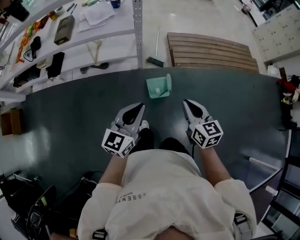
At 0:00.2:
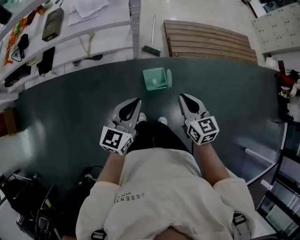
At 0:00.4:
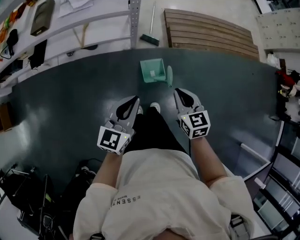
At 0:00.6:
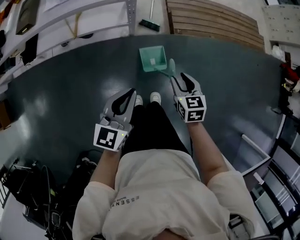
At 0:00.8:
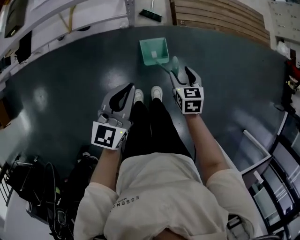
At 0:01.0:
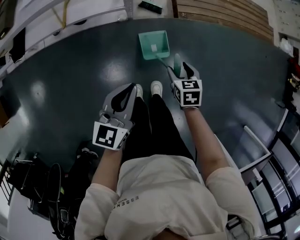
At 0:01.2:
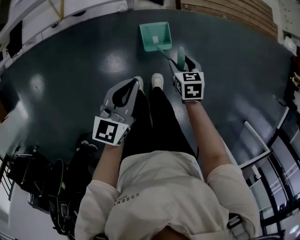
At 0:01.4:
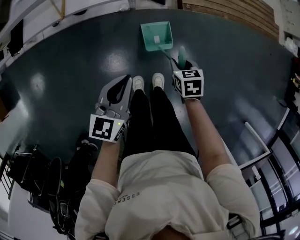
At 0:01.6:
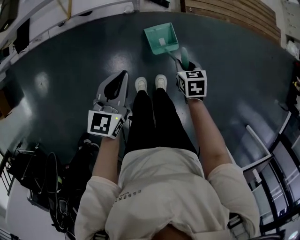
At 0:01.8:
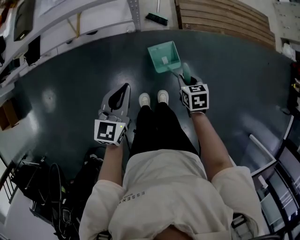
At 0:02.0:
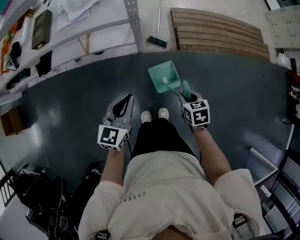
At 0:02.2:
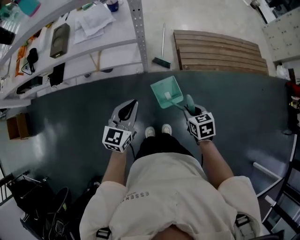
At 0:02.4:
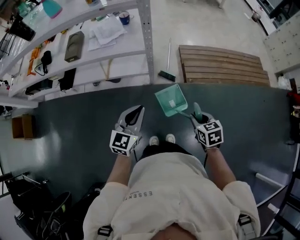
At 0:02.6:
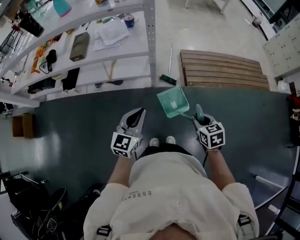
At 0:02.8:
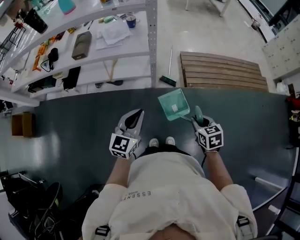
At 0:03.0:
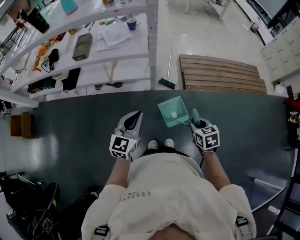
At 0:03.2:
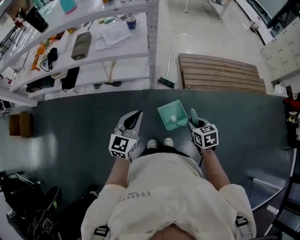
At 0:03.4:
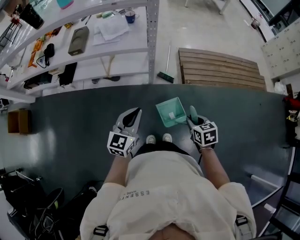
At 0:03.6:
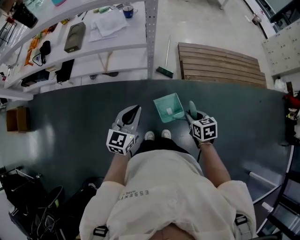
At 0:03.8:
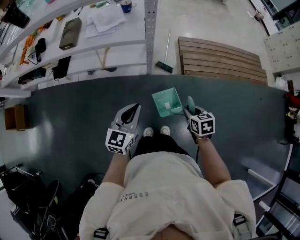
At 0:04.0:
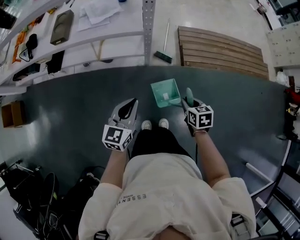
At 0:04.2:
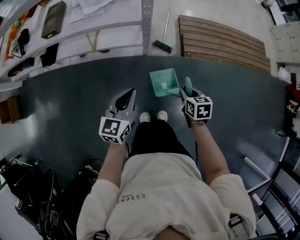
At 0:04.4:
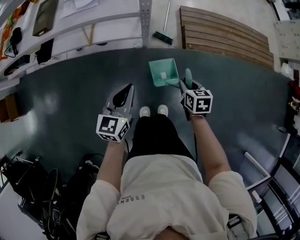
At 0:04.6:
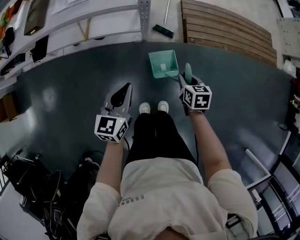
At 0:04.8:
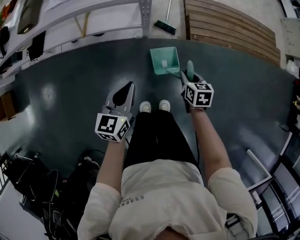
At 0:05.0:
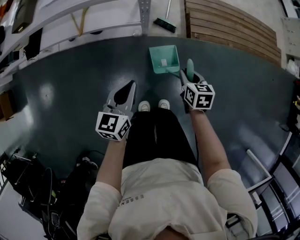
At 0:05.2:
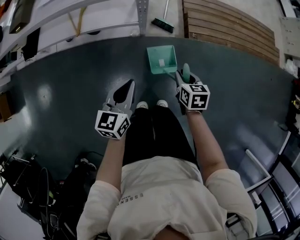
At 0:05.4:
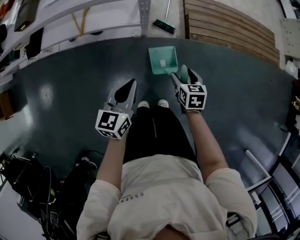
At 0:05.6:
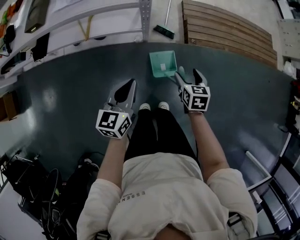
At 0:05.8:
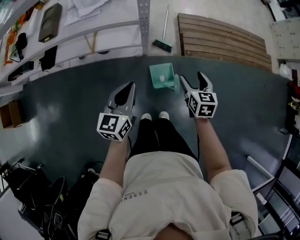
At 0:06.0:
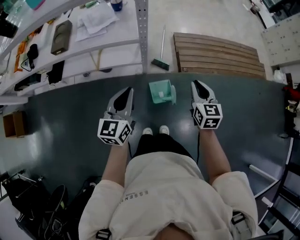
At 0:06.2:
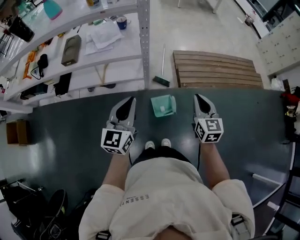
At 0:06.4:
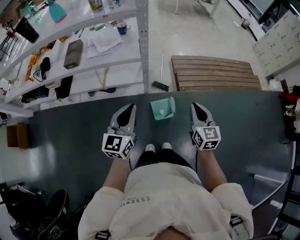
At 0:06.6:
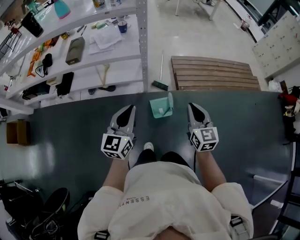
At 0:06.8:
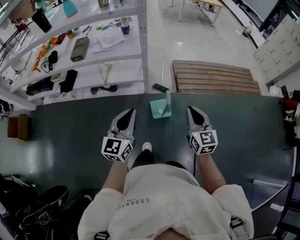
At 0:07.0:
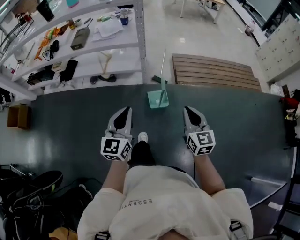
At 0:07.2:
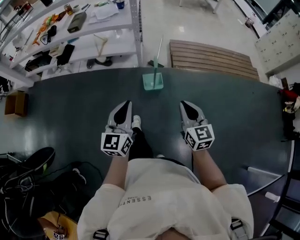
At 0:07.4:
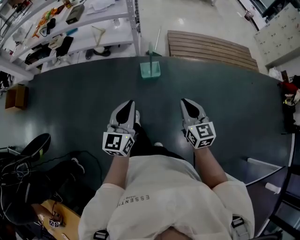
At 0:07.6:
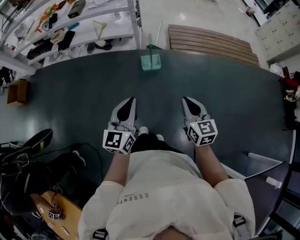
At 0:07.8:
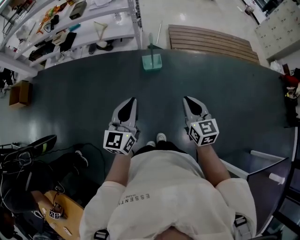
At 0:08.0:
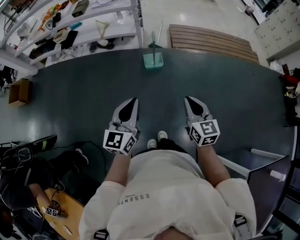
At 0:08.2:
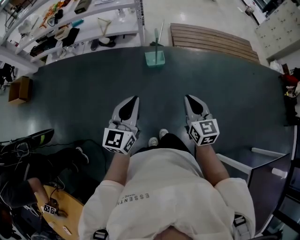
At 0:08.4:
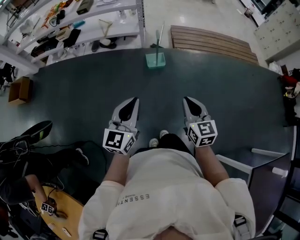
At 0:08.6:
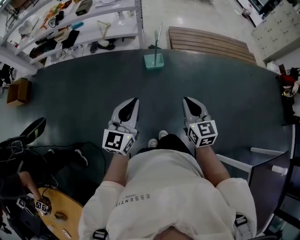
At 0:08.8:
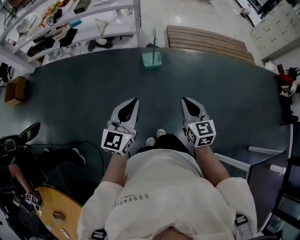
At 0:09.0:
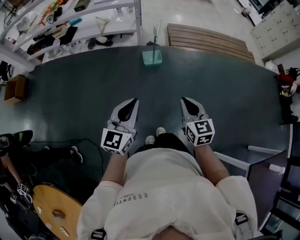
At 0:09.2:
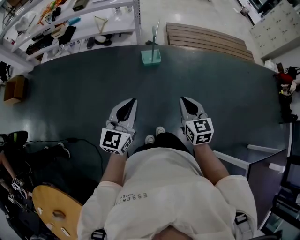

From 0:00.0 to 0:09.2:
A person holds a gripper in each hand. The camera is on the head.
From 0:00.0 to 0:01.6: The two grippers go approximately 30 cm downward and forward. The left gripper swivels roughly 20 degrees. Meanwhile the right gripper tips its fingers downward by approximately 40 degrees, and opens and closes again.
From 0:01.6 to 0:03.0: The two grippers go about 25 cm upward and backward. The left gripper swivels some 20 degrees.
From 0:03.0 to 0:04.6: Both grippers move downward and forward, about 25 cm. The left gripper swivels roughly 20 degrees.
From 0:04.6 to 0:06.2: Both grippers move upward, some 25 cm. The left gripper rotates some 20 degrees, while the right gripper tips its fingers upward by approximately 30 degrees, and opens, then closes once more.
From 0:06.2 to 0:07.6: Both grippers are carried backward, some 50 cm.
From 0:07.6 to 0:09.2: The left gripper goes roughly 10 cm backward, while the right gripper heads backward and to the left, covering approximately 10 cm.

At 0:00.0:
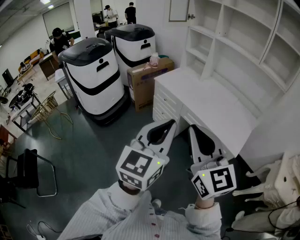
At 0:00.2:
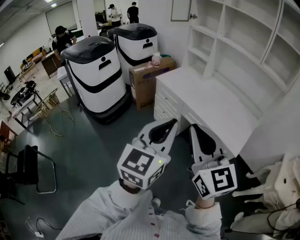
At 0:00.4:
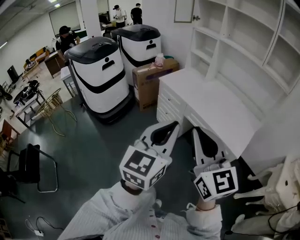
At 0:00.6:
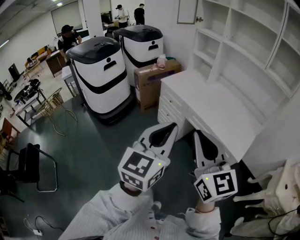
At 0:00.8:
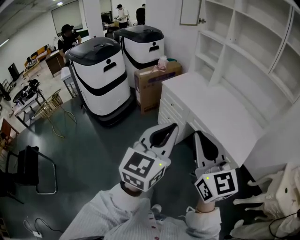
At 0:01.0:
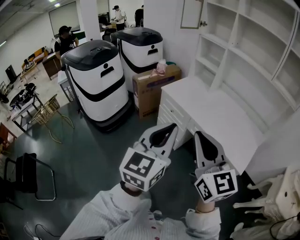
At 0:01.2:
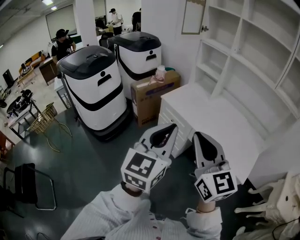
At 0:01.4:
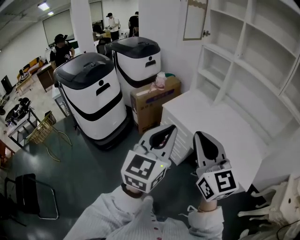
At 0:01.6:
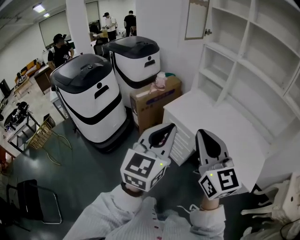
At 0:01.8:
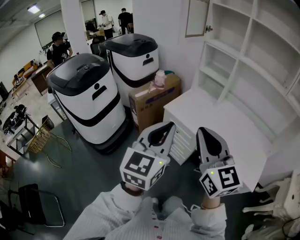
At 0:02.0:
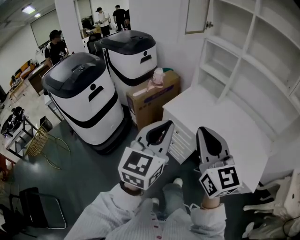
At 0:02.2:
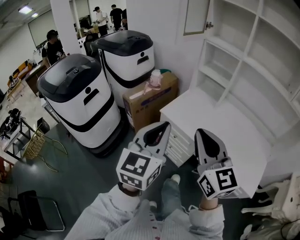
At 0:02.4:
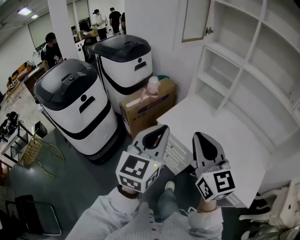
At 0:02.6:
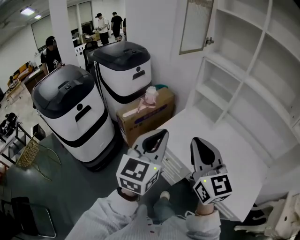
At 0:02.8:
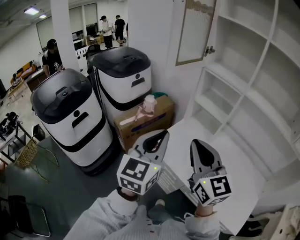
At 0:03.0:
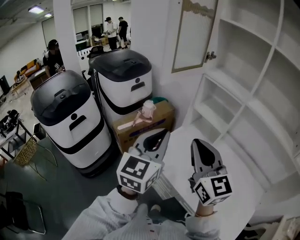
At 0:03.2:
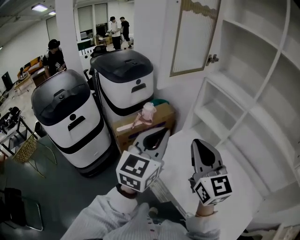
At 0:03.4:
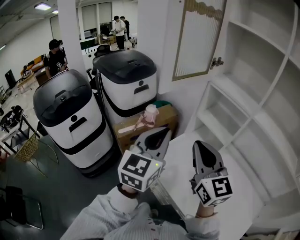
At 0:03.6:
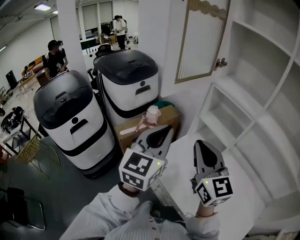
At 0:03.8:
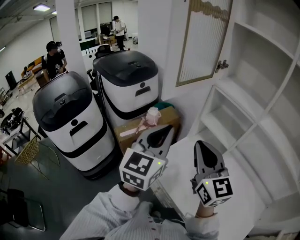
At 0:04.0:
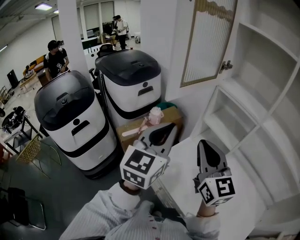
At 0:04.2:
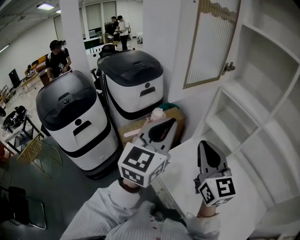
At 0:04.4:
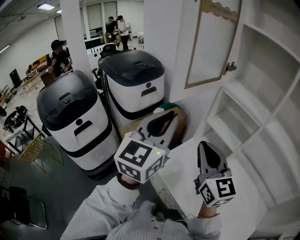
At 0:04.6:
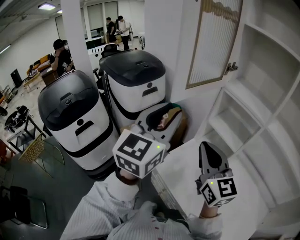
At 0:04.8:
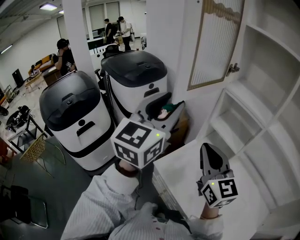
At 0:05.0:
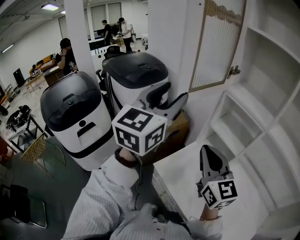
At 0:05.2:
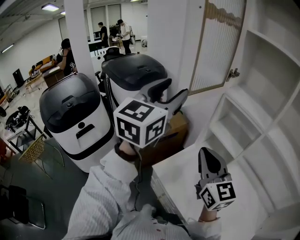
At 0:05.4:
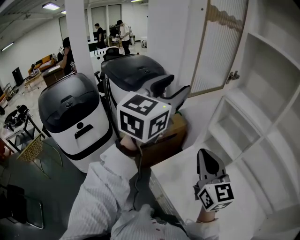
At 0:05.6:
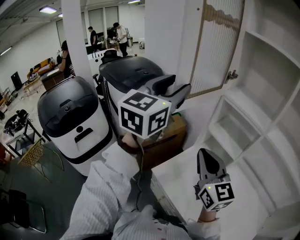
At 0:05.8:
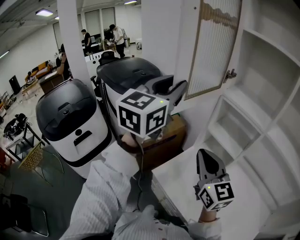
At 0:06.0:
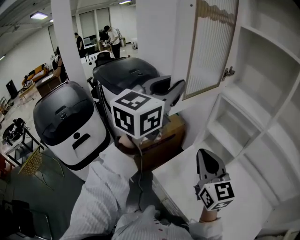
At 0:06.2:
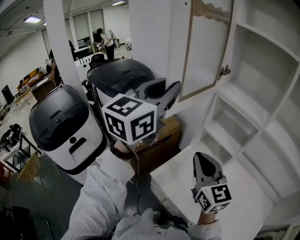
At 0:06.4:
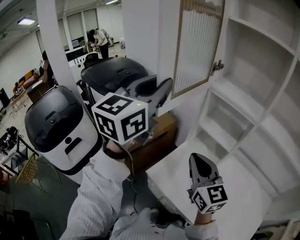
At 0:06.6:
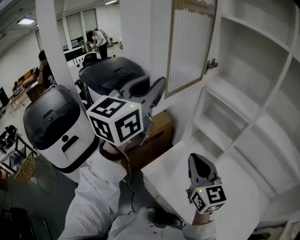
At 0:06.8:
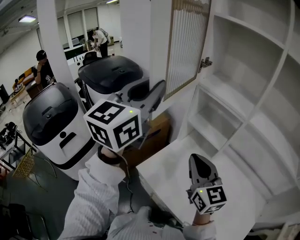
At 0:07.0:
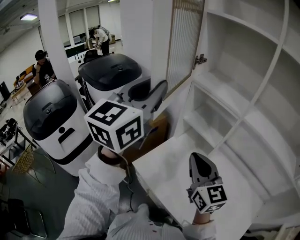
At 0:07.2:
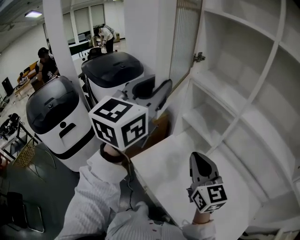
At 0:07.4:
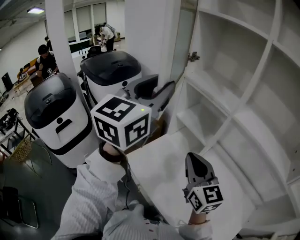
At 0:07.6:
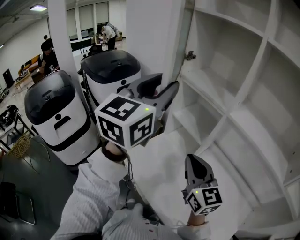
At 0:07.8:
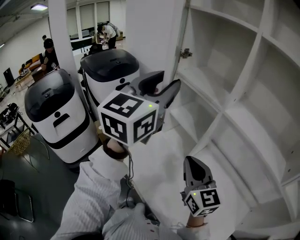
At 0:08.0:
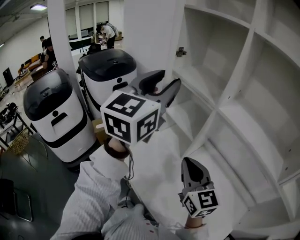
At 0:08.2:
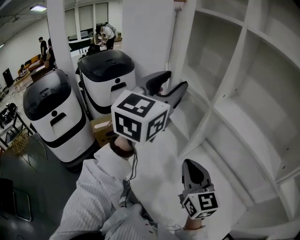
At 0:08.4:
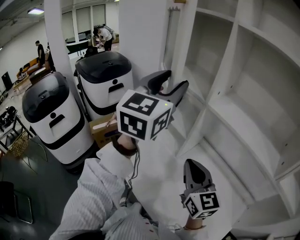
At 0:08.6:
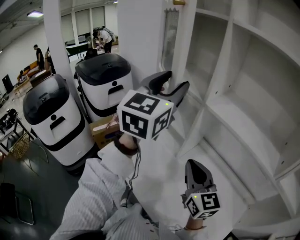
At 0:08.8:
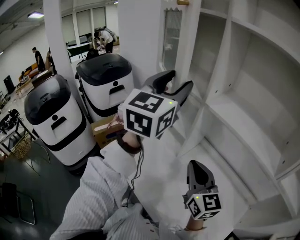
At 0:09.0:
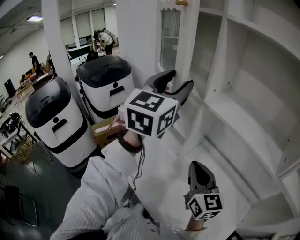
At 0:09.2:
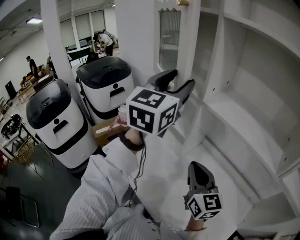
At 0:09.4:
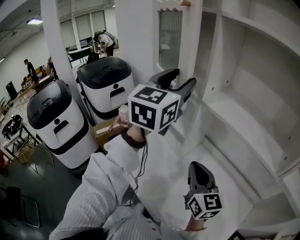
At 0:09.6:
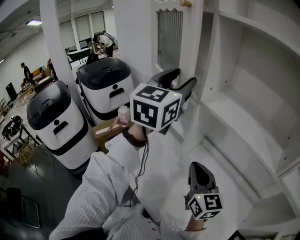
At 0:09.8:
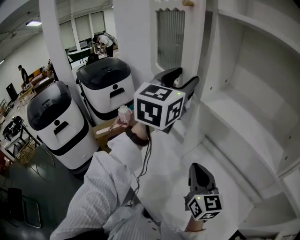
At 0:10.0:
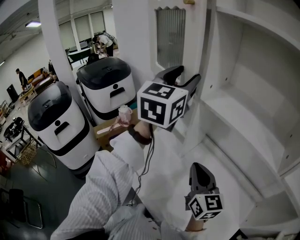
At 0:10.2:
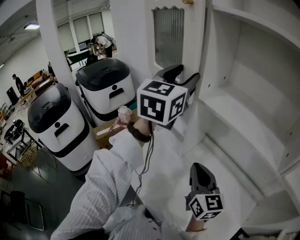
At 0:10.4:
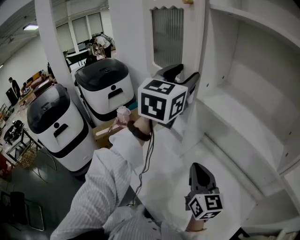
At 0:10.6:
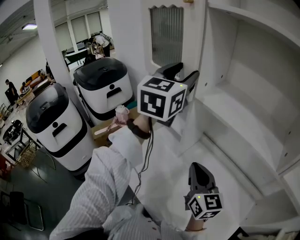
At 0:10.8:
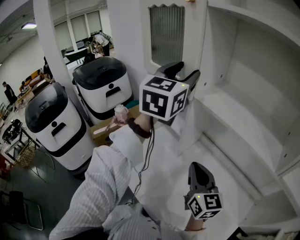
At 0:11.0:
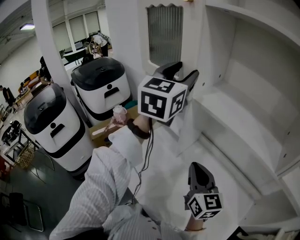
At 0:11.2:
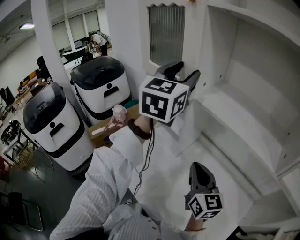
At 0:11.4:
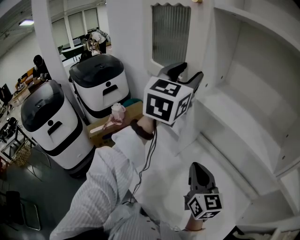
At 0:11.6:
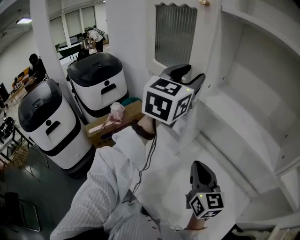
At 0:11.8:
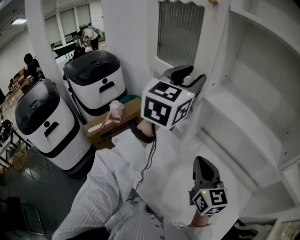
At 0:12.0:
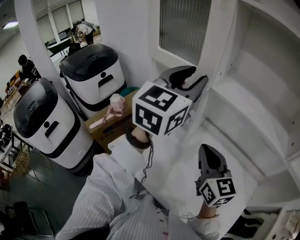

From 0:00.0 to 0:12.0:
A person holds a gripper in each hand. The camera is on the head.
From 0:00.0 to 0:01.6: The right gripper heads forward, covering roughly 30 cm. Meanwhile the left gripper travels forward and to the left by about 30 cm.
From 0:01.6 to 0:03.0: The grippers both shift forward by some 35 cm.
From 0:03.0 to 0:04.4: The right gripper moves forward, some 10 cm; the left gripper shifts some 15 cm forward and upward.
From 0:04.4 to 0:06.0: The left gripper travels forward and upward by some 15 cm, and opens, then closes again.
From 0:06.0 to 0:07.6: Both grippers move to the right, approximately 15 cm.
From 0:07.6 to 0:09.0: The two grippers go some 15 cm to the right.
From 0:09.0 to 0:10.4: The left gripper heads to the right, covering some 5 cm.
From 0:10.4 to 0:12.0: The right gripper moves some 5 cm; the left gripper moves approximately 5 cm.

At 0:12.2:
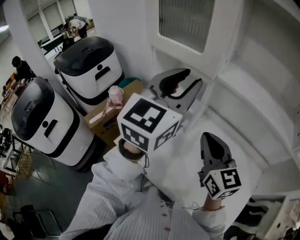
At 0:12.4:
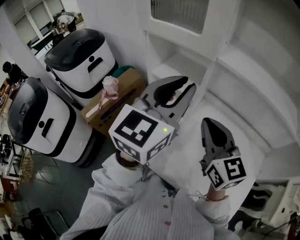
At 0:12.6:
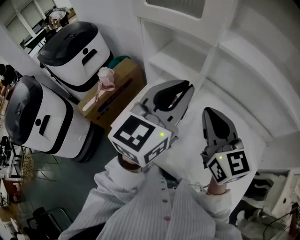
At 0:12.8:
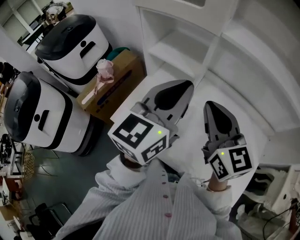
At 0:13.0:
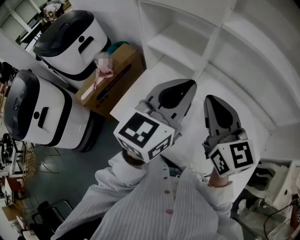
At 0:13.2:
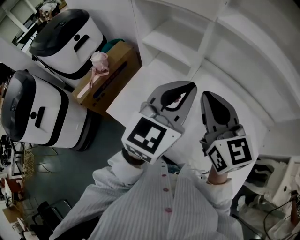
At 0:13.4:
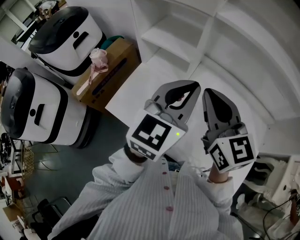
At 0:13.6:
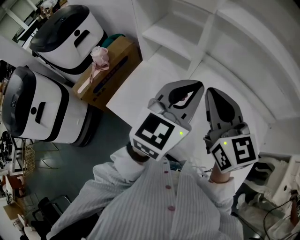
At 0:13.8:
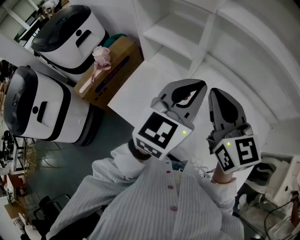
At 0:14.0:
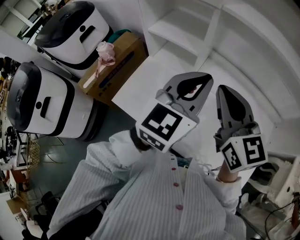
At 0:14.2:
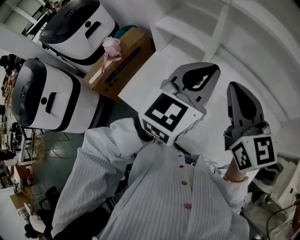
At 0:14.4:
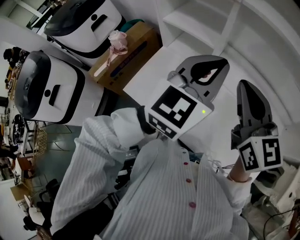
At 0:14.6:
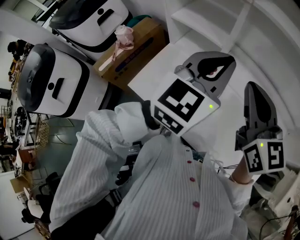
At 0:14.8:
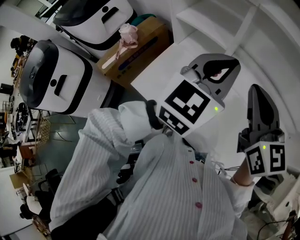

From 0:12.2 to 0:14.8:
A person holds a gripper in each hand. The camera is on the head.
From 0:12.2 to 0:13.4: The left gripper heads downward and backward, covering about 15 cm, and closes up.
From 0:13.4 to 0:14.8: The grippers make only small movements.
